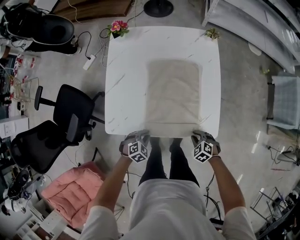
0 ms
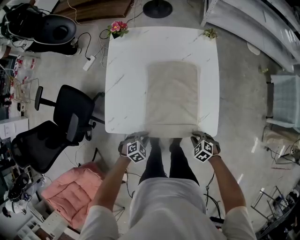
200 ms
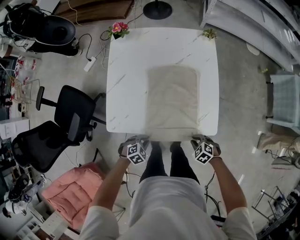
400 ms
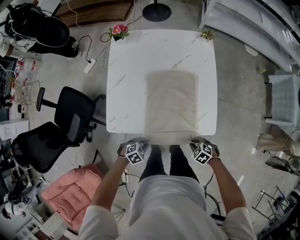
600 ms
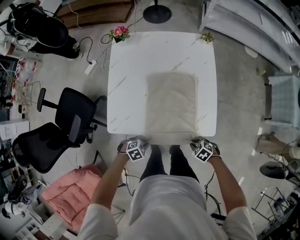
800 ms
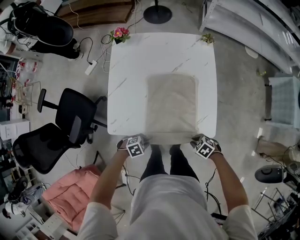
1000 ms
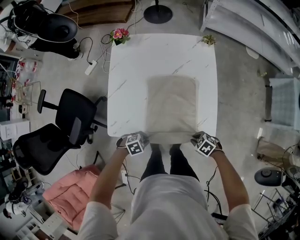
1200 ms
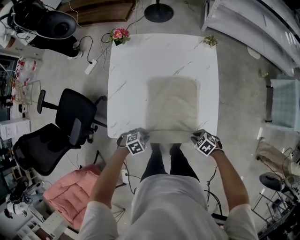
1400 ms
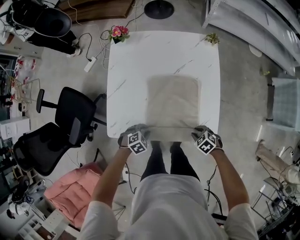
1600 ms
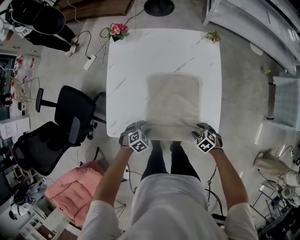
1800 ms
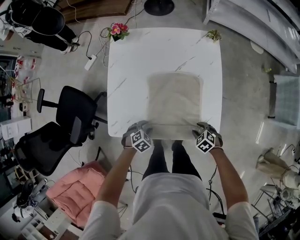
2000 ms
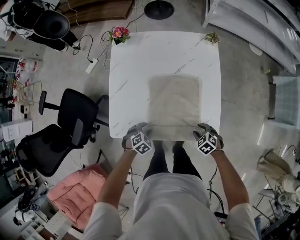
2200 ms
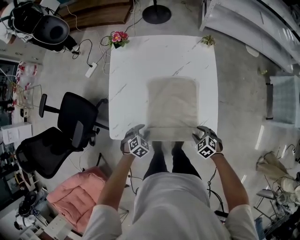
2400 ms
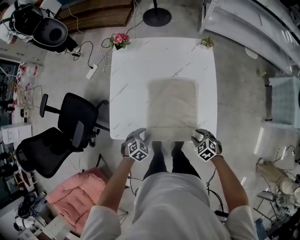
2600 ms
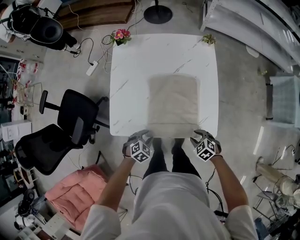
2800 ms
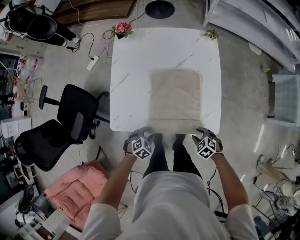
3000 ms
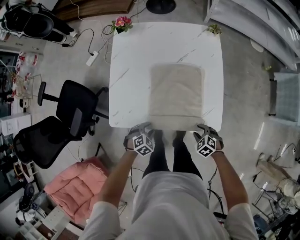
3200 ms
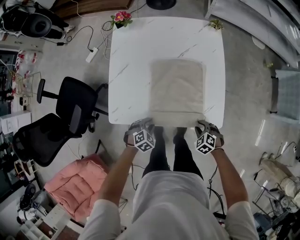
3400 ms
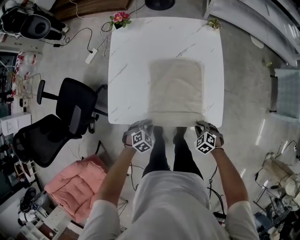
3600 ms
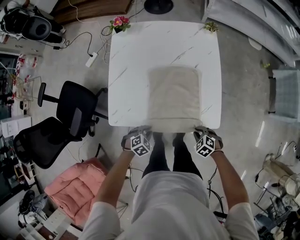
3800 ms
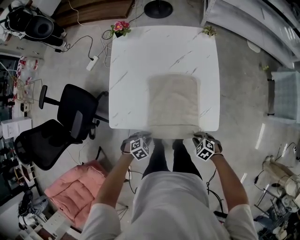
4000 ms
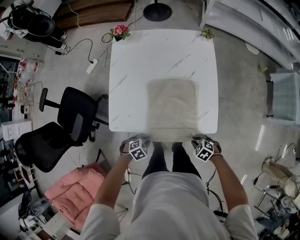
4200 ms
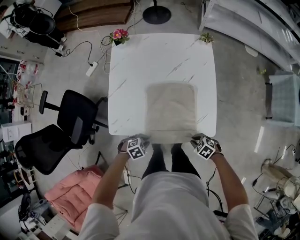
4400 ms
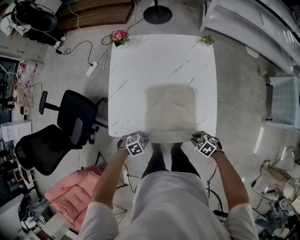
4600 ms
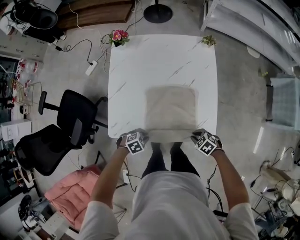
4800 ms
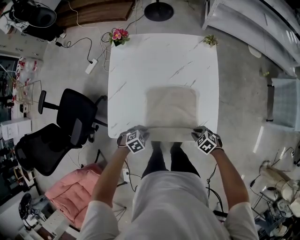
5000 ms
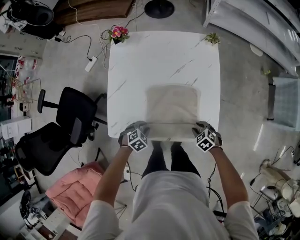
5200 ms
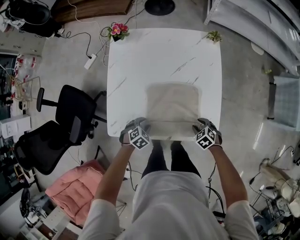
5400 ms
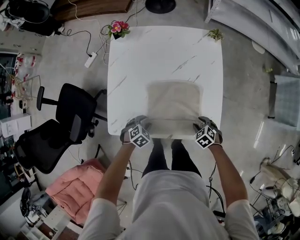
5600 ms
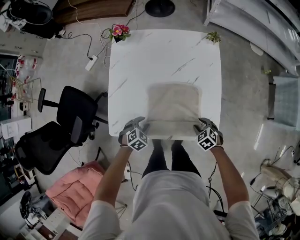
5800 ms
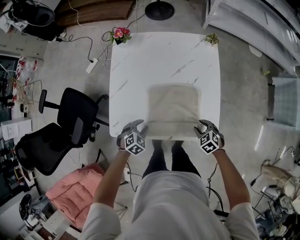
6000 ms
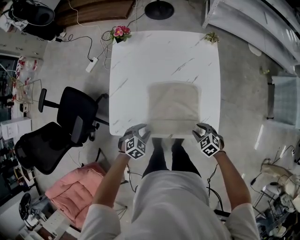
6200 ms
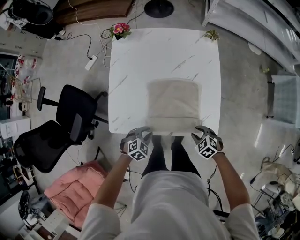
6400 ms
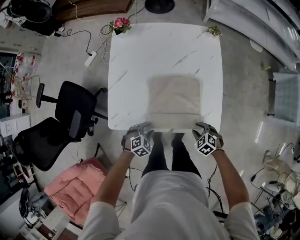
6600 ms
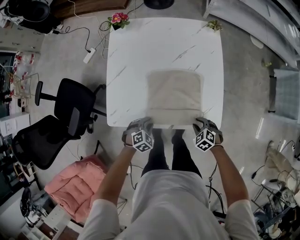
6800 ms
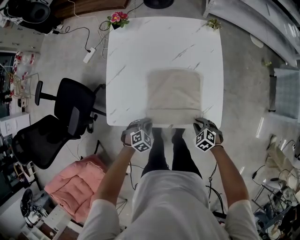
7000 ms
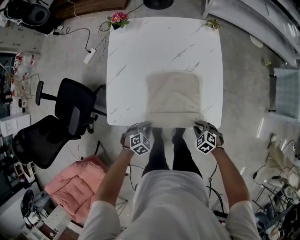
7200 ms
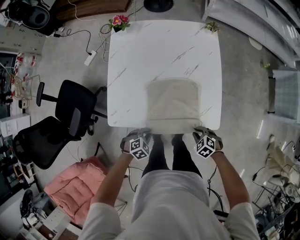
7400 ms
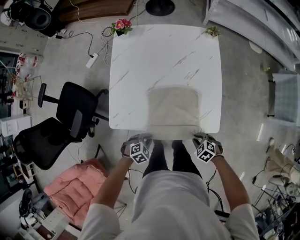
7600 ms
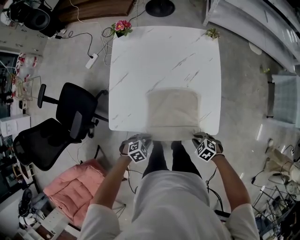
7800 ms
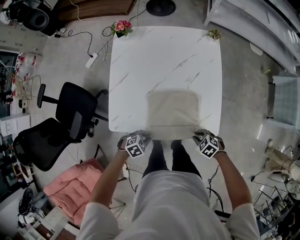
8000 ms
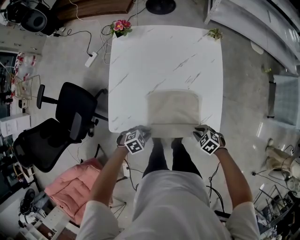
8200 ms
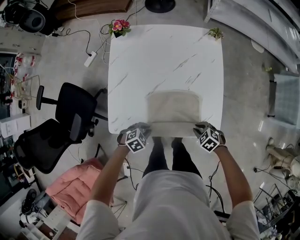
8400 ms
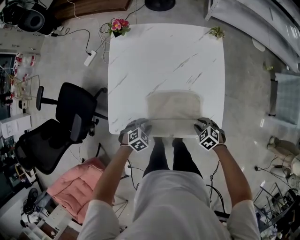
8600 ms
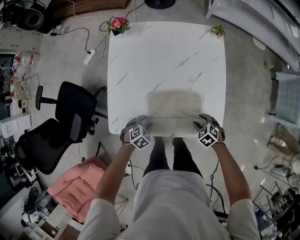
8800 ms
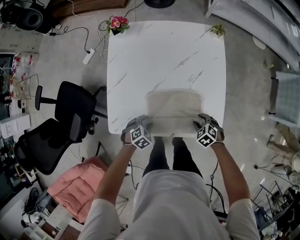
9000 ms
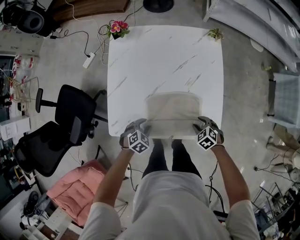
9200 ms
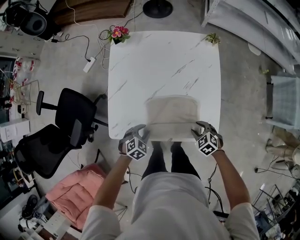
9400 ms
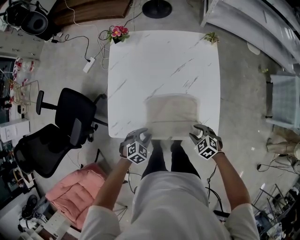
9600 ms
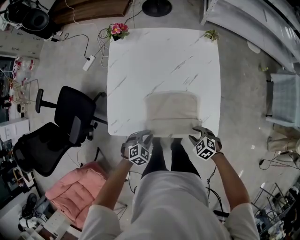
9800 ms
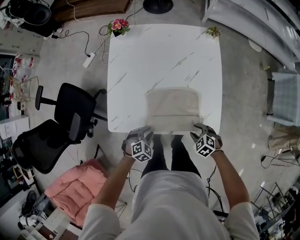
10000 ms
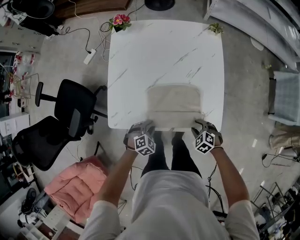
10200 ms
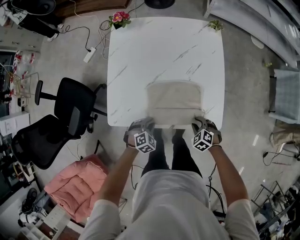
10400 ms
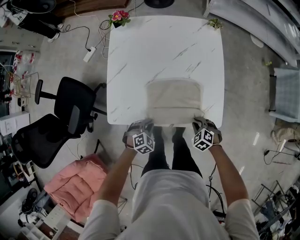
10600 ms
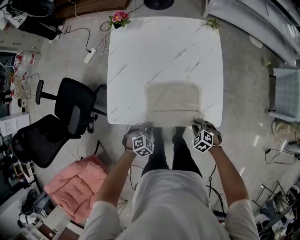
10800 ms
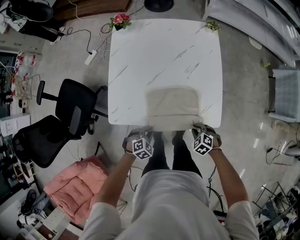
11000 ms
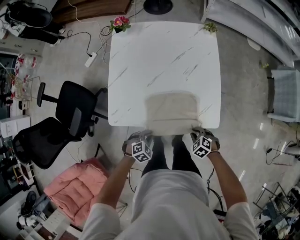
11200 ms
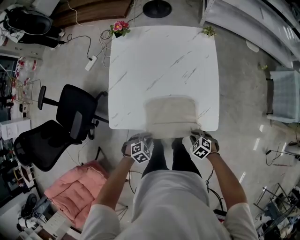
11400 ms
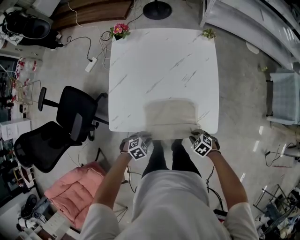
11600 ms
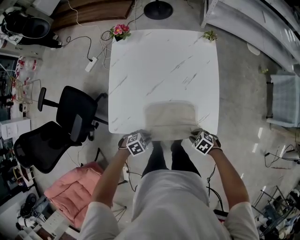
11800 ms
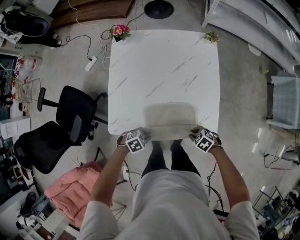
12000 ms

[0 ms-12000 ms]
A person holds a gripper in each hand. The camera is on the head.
0 ms to 1600 ms: The right gripper moves approximately 5 cm, while the left gripper shifts by some 5 cm.
1600 ms to 3000 ms: The left gripper shifts by some 5 cm, while the right gripper changes place by roughly 5 cm.
3000 ms to 4400 ms: The right gripper closes its fingers; the left gripper rotates some 20 degrees, and closes.
4400 ms to 6000 ms: The left gripper moves some 15 cm, swivels about 30 degrees, and opens up, while the right gripper shifts by about 15 cm, and opens.
6000 ms to 7600 ms: The left gripper shifts by about 15 cm, and closes up; the right gripper ends up roughly 15 cm from where it was, and closes its fingers.
7600 ms to 9000 ms: The left gripper moves about 15 cm, and opens up. Meanwhile the right gripper changes place by about 15 cm, and opens its fingers.
9000 ms to 10400 ms: Both grippers move backward, roughly 5 cm.
10400 ms to 12000 ms: The right gripper swivels roughly 20 degrees. The left gripper turns by approximately 30 degrees.

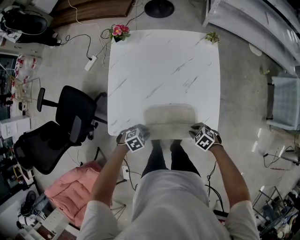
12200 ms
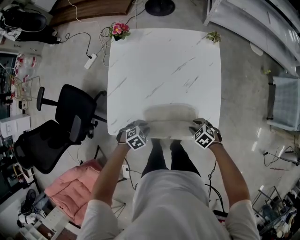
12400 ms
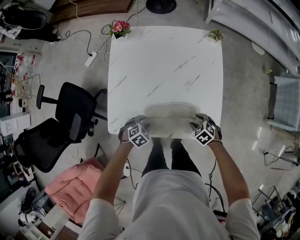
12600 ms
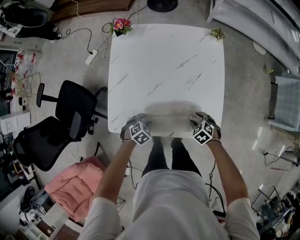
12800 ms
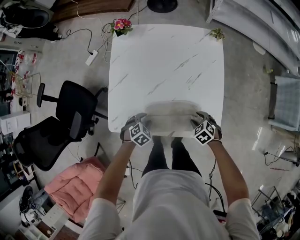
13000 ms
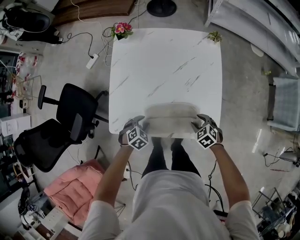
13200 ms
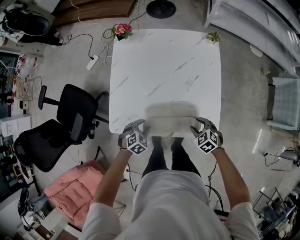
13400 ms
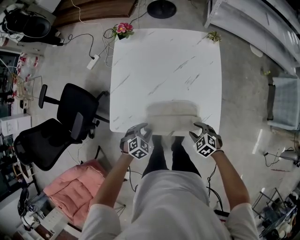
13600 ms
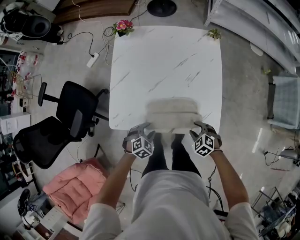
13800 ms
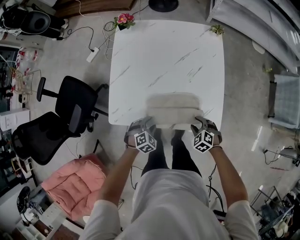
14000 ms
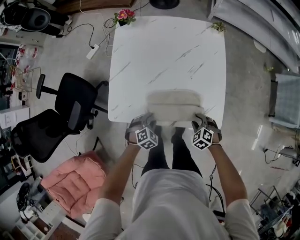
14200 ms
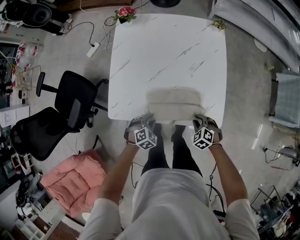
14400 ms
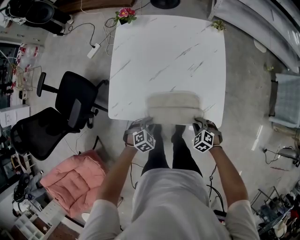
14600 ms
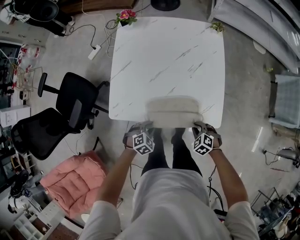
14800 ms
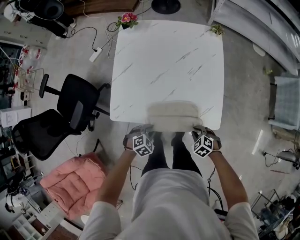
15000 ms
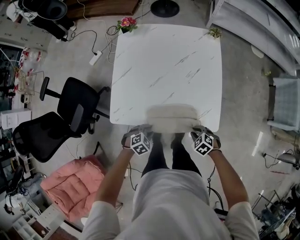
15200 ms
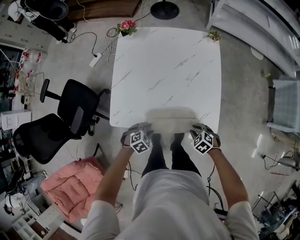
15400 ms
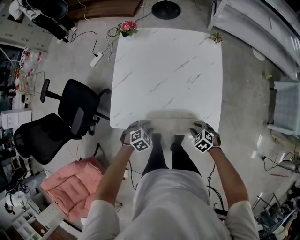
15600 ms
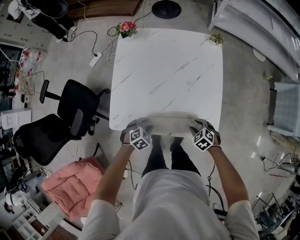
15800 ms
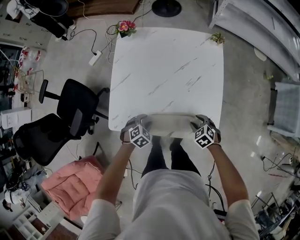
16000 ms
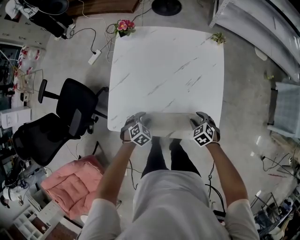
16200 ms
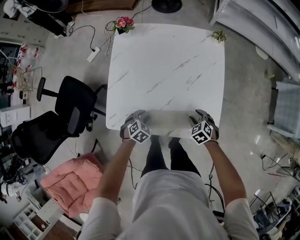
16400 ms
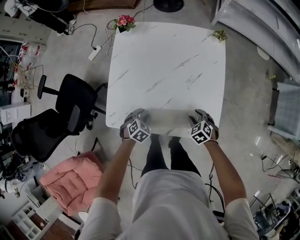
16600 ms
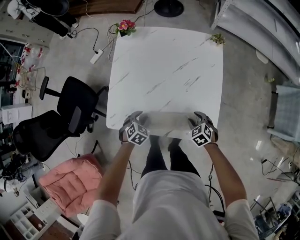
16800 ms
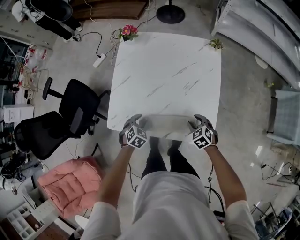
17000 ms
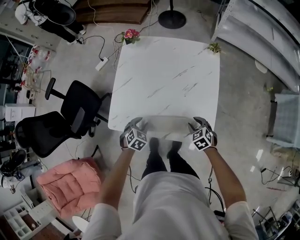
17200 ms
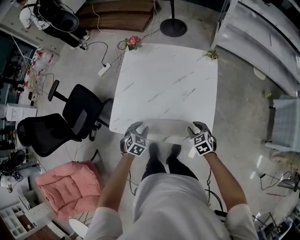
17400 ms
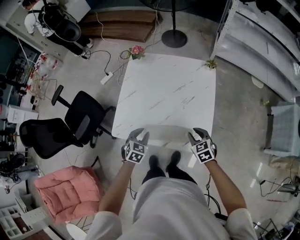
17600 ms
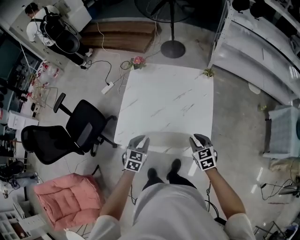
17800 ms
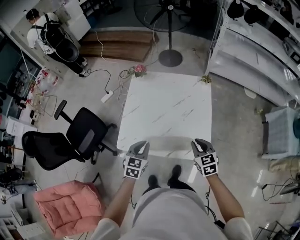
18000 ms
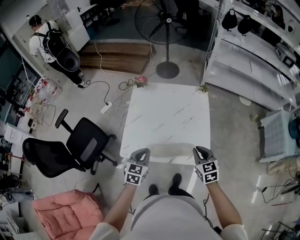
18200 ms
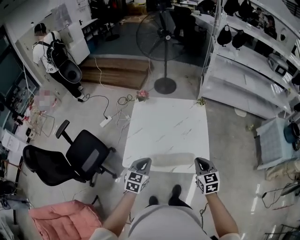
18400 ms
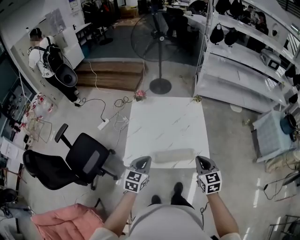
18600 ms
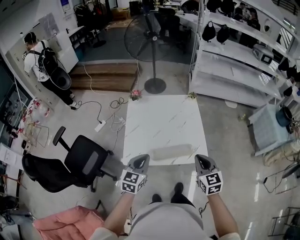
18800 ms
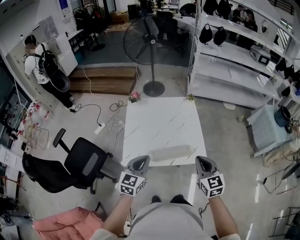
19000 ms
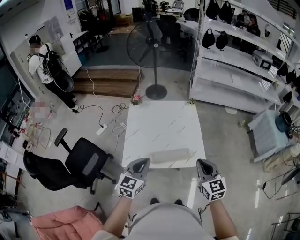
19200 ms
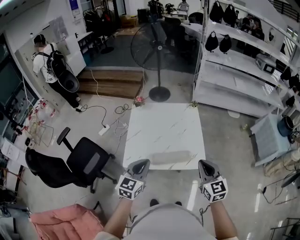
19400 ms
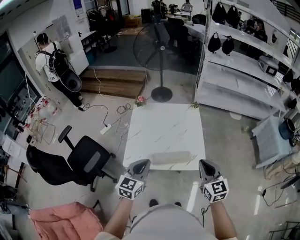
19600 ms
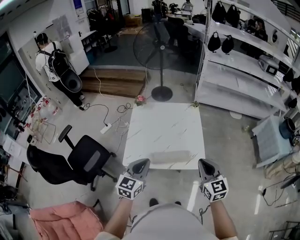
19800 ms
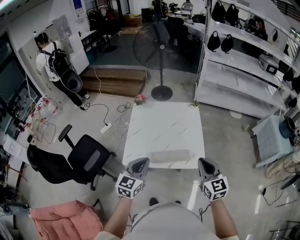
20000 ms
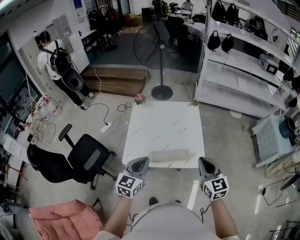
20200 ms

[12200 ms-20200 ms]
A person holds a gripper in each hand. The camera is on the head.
12200 ms to 13800 ms: The right gripper opens. Meanwhile the left gripper rotates about 20 degrees, and opens up.
15400 ms to 17000 ms: Both grippers travel together forward, approximately 10 cm. The left gripper turns by some 30 degrees.
17000 ms to 18600 ms: The left gripper heads upward, covering about 30 cm, angles its fingers upward, by about 40 degrees, and closes its fingers; the right gripper moves upward and backward, some 35 cm, tips its fingers upward by approximately 30 degrees, and closes up.
18600 ms to 20200 ms: The two grippers go approximately 10 cm upward and backward.

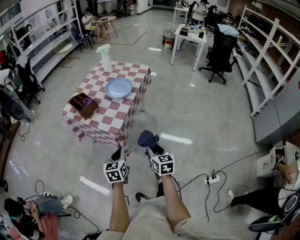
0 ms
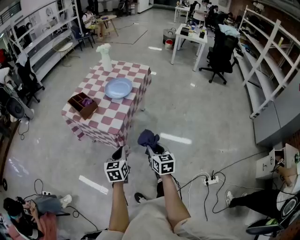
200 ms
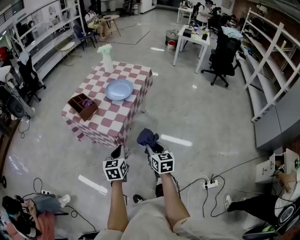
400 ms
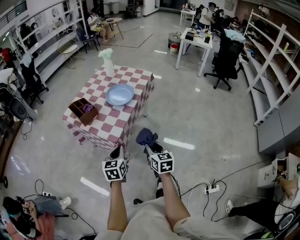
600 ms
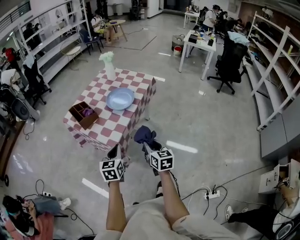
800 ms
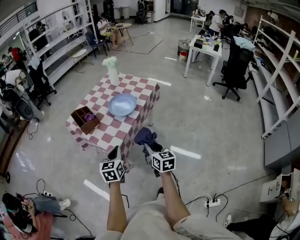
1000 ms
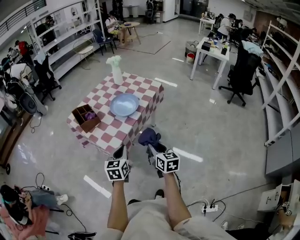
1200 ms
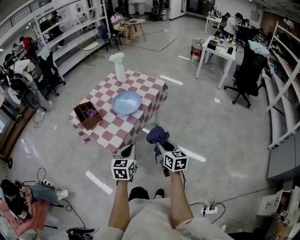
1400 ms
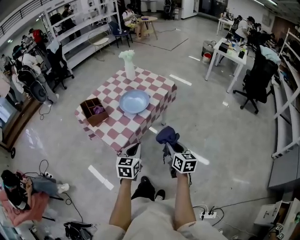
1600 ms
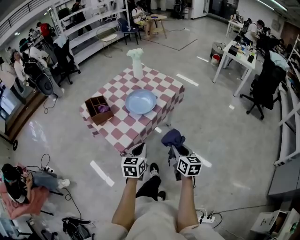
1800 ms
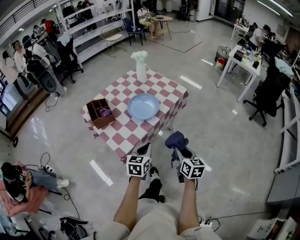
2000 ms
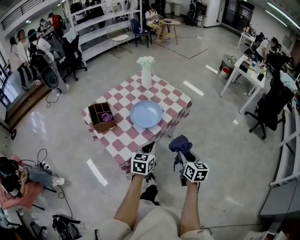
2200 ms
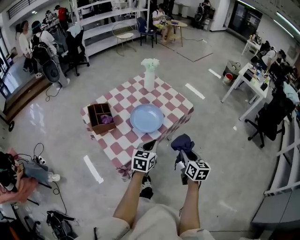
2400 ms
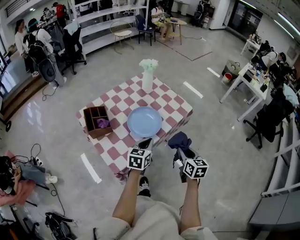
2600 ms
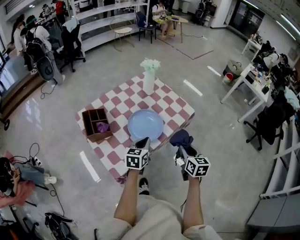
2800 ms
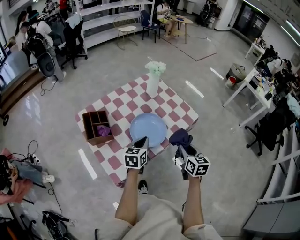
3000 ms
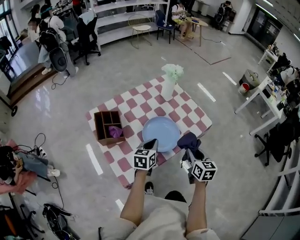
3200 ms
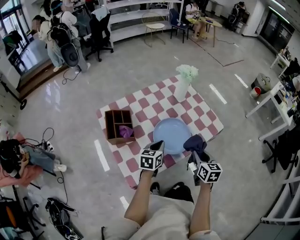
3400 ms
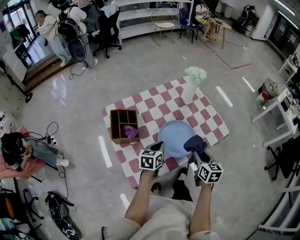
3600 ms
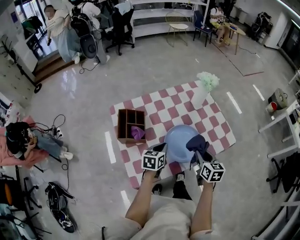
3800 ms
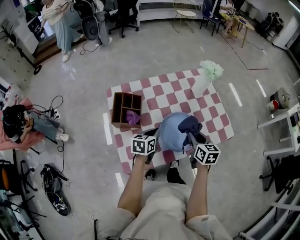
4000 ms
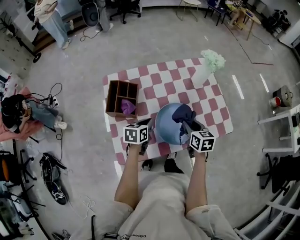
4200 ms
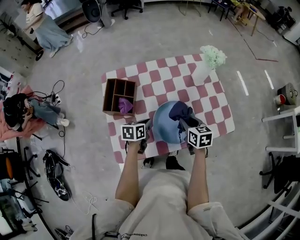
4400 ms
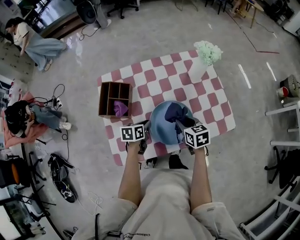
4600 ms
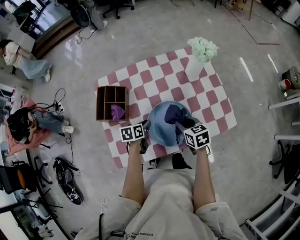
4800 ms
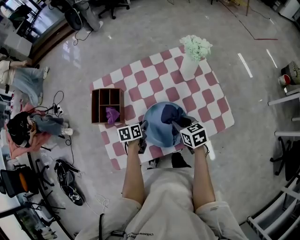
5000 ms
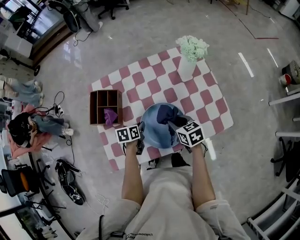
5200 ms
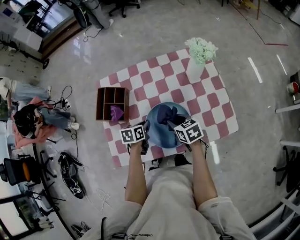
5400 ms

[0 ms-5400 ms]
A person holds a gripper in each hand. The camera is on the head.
0 ms to 1400 ms: The two grippers go roughly 20 cm forward and to the right.
1400 ms to 2800 ms: Both grippers travel together forward, roughly 30 cm.
2800 ms to 4000 ms: The left gripper shifts approximately 20 cm to the left, forward and downward, and turns by some 20 degrees. The right gripper goes roughly 25 cm forward and to the left, and changes its angle by approximately 20 degrees.
4000 ms to 5400 ms: The right gripper travels downward and forward by approximately 10 cm, and changes its angle by about 40 degrees; the left gripper goes roughly 10 cm downward, and turns by approximately 20 degrees.
